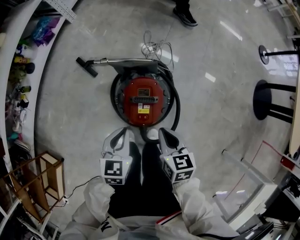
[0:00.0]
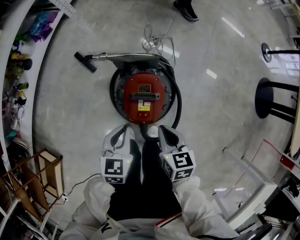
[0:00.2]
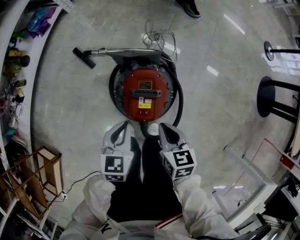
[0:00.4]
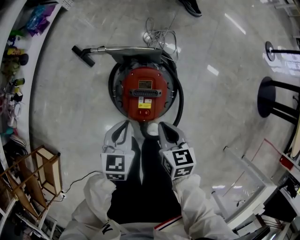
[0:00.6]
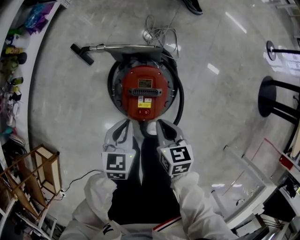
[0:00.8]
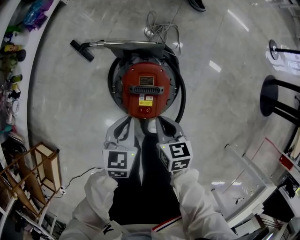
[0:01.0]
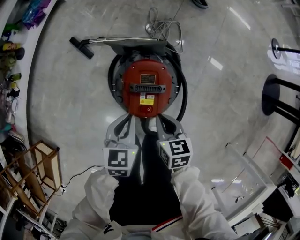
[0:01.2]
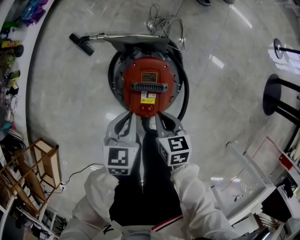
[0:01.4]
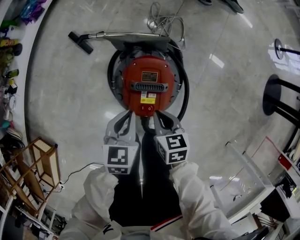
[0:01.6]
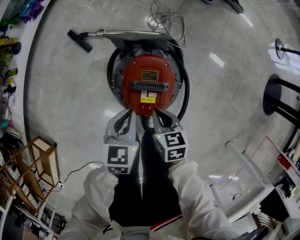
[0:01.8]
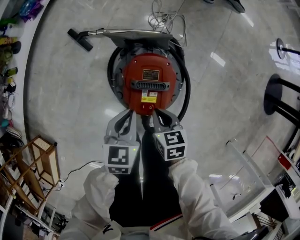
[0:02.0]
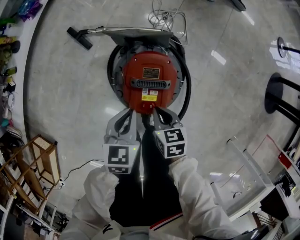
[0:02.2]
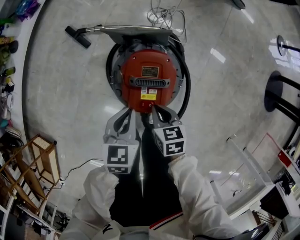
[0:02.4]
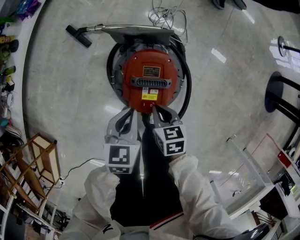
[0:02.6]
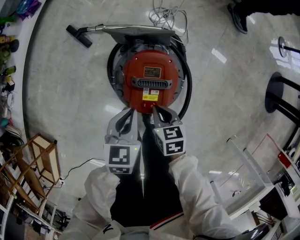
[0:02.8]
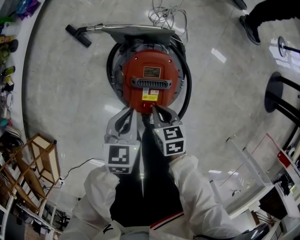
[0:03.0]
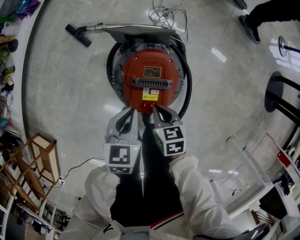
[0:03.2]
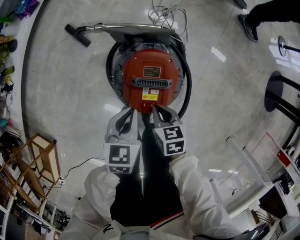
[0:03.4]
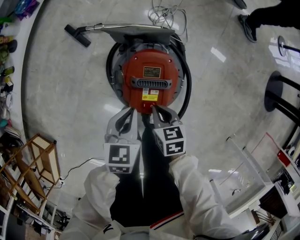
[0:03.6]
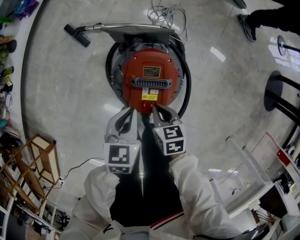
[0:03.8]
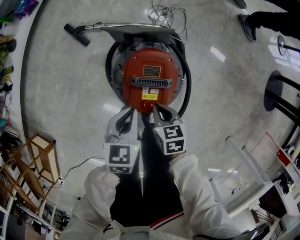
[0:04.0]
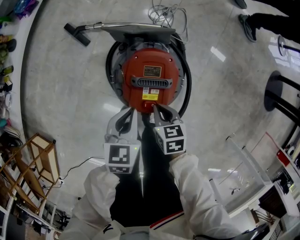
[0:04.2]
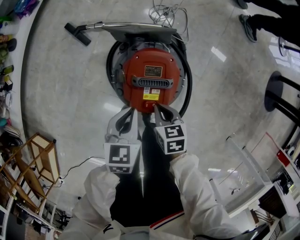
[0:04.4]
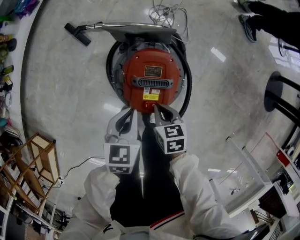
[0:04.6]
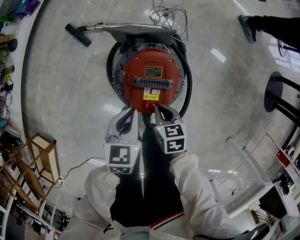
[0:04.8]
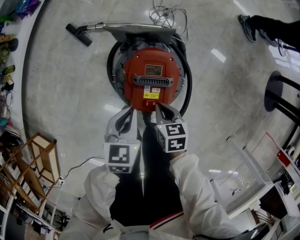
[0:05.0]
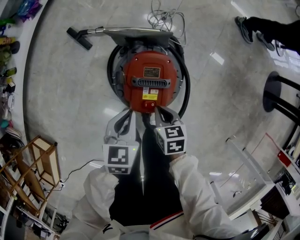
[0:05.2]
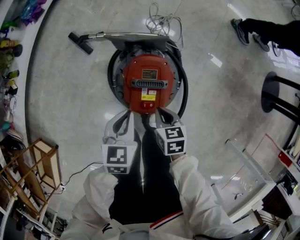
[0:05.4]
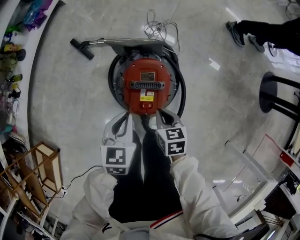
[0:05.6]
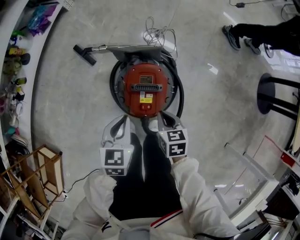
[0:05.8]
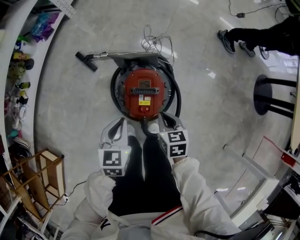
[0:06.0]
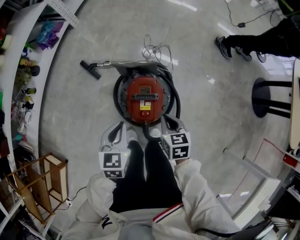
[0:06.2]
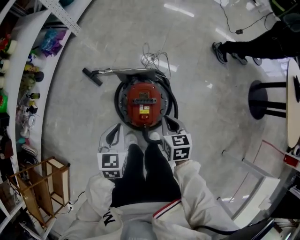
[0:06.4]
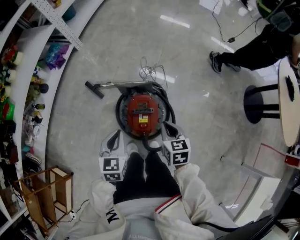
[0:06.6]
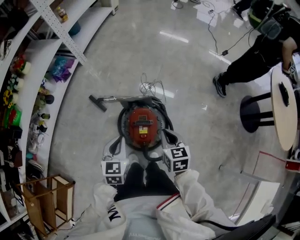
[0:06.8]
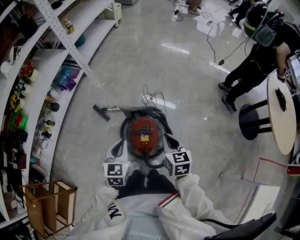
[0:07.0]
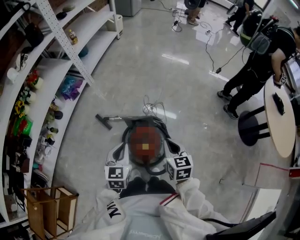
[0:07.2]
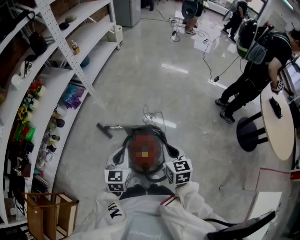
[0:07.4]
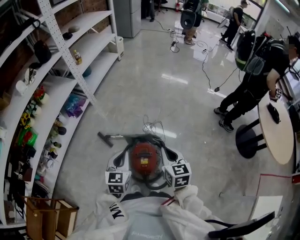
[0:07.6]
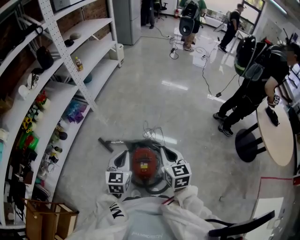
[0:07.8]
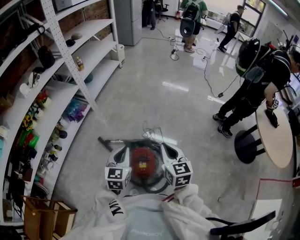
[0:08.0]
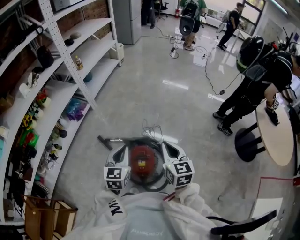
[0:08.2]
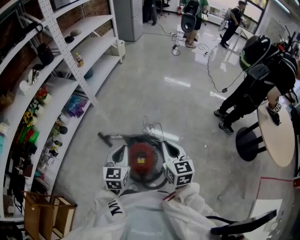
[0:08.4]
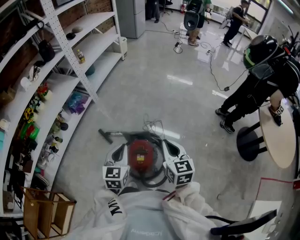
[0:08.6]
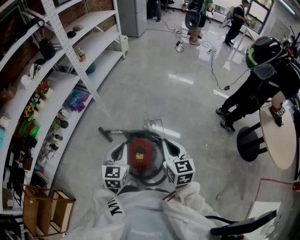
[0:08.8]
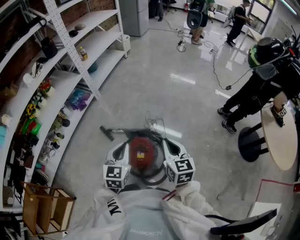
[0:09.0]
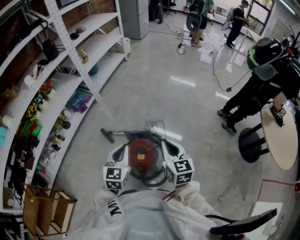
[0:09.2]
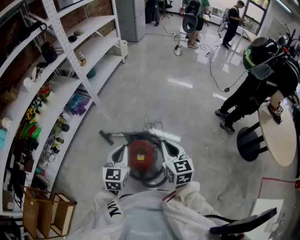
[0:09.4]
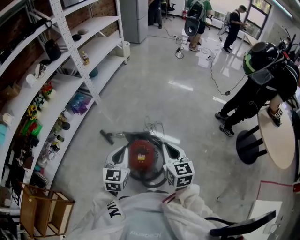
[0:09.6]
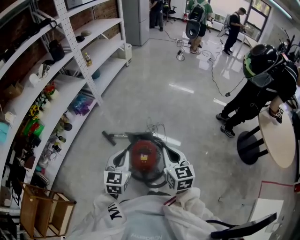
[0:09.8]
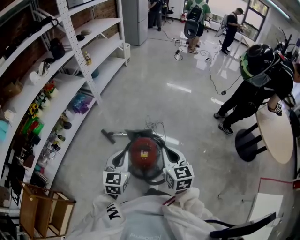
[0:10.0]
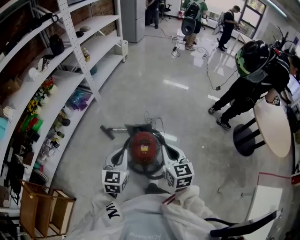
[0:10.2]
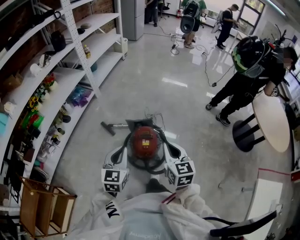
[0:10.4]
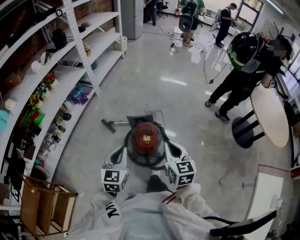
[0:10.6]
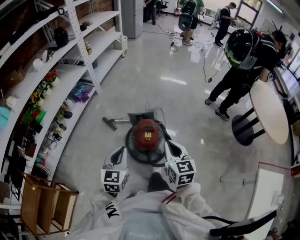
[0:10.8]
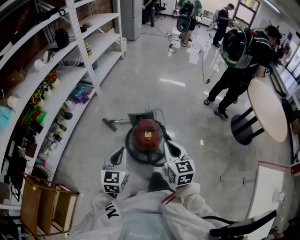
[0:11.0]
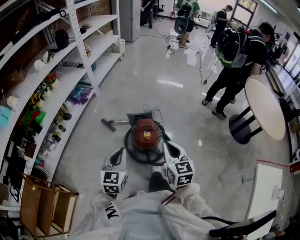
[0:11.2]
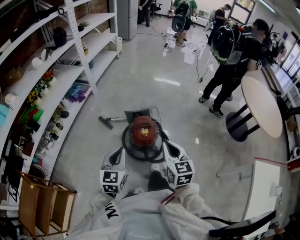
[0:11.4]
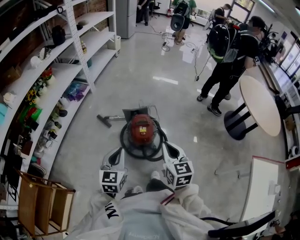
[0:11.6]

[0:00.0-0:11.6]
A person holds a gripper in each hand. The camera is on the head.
0:00.0 to 0:01.4: The left gripper moves downward, roughly 10 cm; the right gripper travels downward by some 10 cm.
0:01.4 to 0:02.8: The right gripper moves downward, about 5 cm.
0:02.8 to 0:04.4: The two grippers keep their place.
0:04.4 to 0:05.8: Both grippers move upward, about 5 cm.
0:05.8 to 0:07.2: The two grippers go about 25 cm upward. The right gripper changes its angle by some 20 degrees.
0:07.2 to 0:08.8: The left gripper goes some 10 cm upward and to the right, while the right gripper is displaced upward by roughly 10 cm.
0:08.8 to 0:10.2: The two grippers go roughly 10 cm backward and to the left.
0:10.2 to 0:11.6: The grippers both shift backward by about 15 cm.

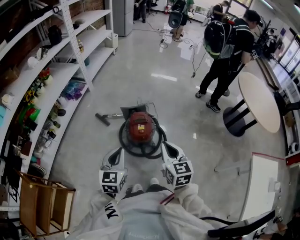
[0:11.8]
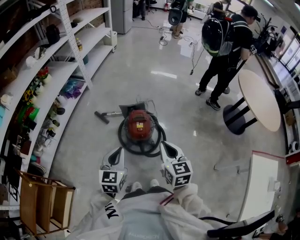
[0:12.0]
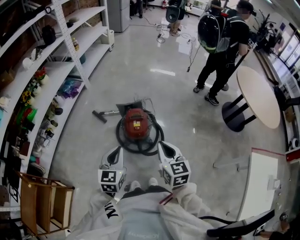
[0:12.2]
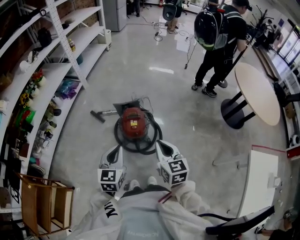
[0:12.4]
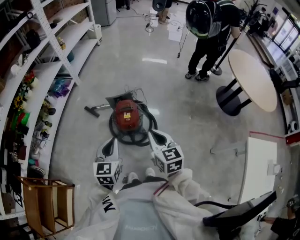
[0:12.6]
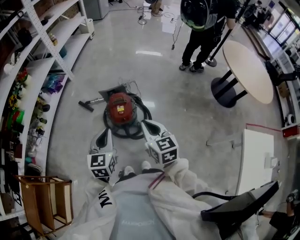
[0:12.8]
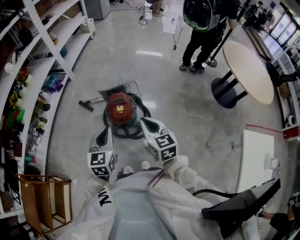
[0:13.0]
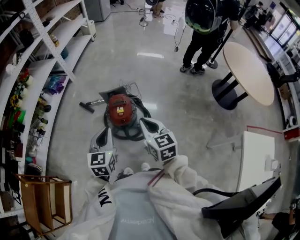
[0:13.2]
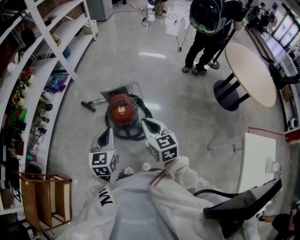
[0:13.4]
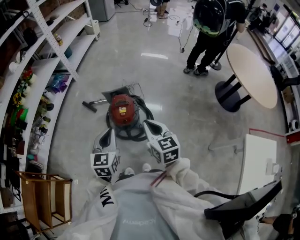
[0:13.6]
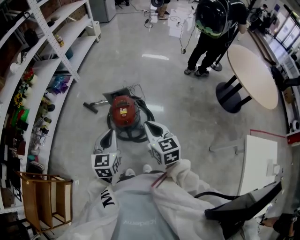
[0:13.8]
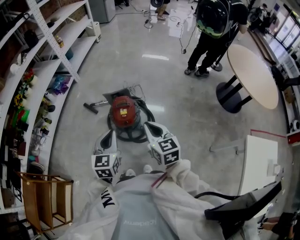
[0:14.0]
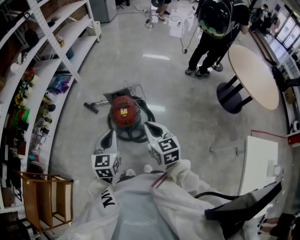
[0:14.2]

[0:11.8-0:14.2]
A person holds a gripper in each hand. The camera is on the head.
0:11.8 to 0:13.0: The left gripper moves to the right, roughly 10 cm.
0:13.0 to 0:14.2: There are only small adjustments of the grippers.

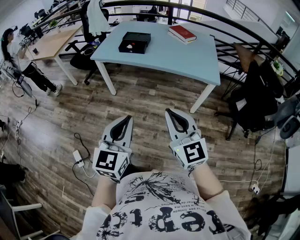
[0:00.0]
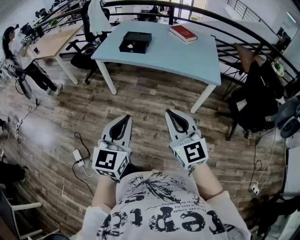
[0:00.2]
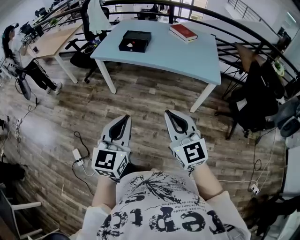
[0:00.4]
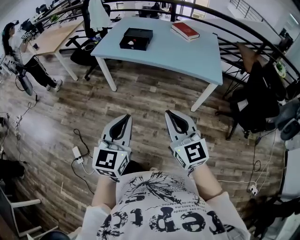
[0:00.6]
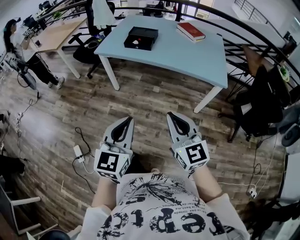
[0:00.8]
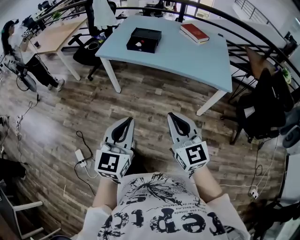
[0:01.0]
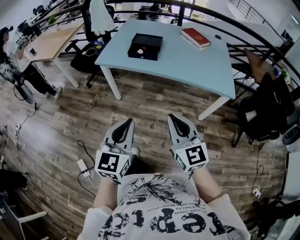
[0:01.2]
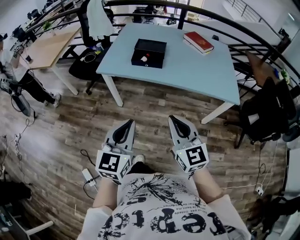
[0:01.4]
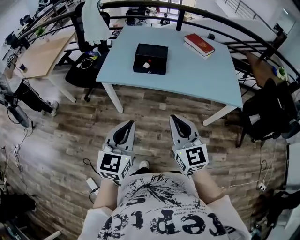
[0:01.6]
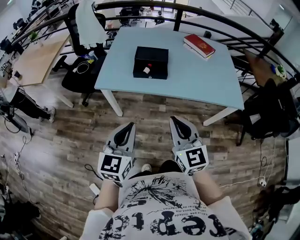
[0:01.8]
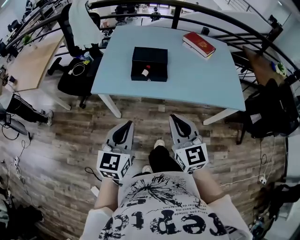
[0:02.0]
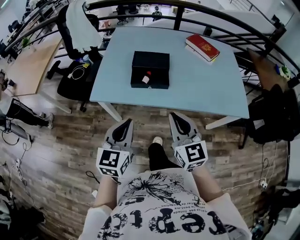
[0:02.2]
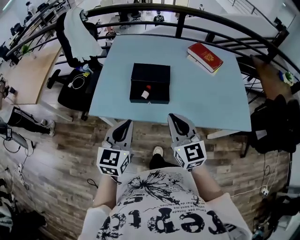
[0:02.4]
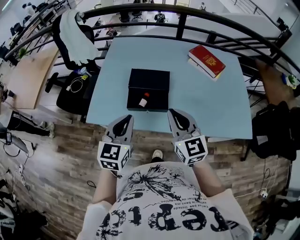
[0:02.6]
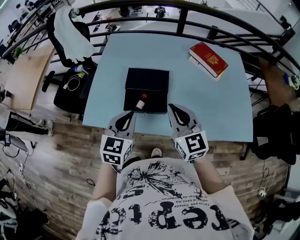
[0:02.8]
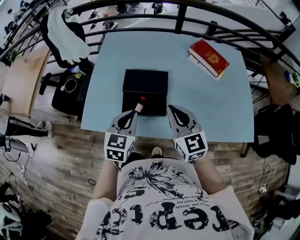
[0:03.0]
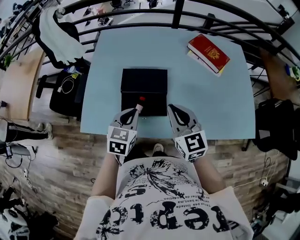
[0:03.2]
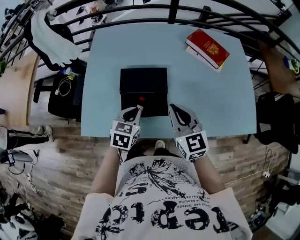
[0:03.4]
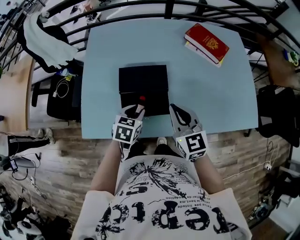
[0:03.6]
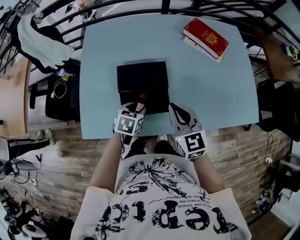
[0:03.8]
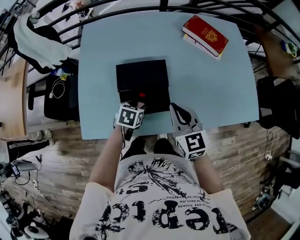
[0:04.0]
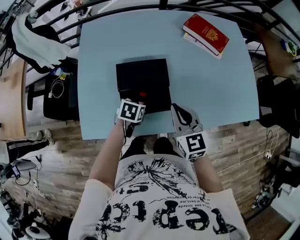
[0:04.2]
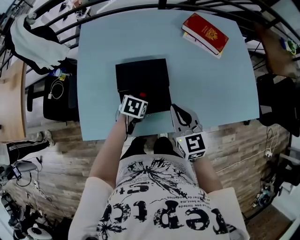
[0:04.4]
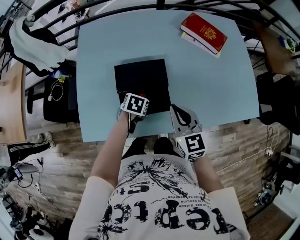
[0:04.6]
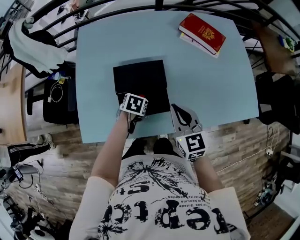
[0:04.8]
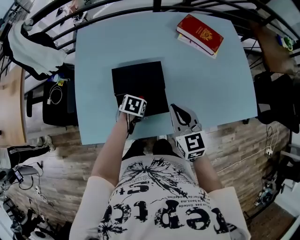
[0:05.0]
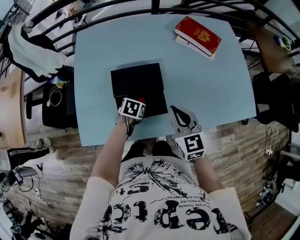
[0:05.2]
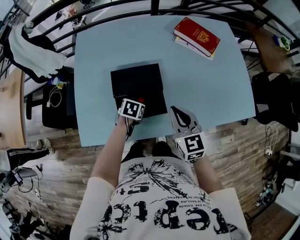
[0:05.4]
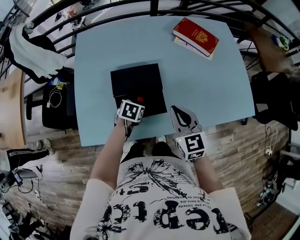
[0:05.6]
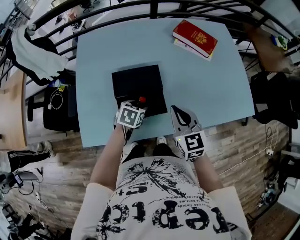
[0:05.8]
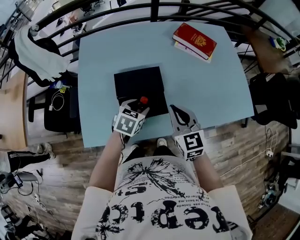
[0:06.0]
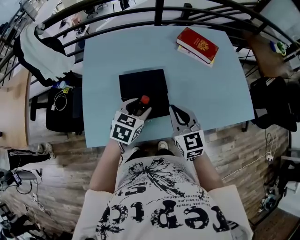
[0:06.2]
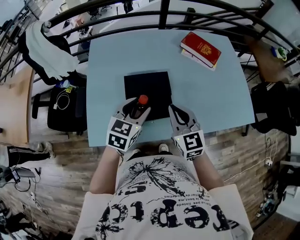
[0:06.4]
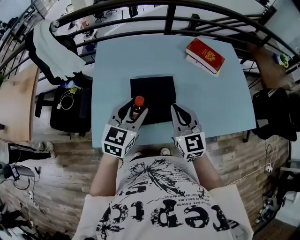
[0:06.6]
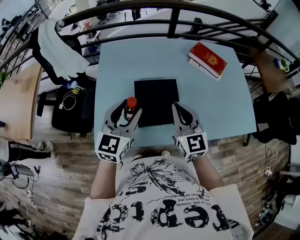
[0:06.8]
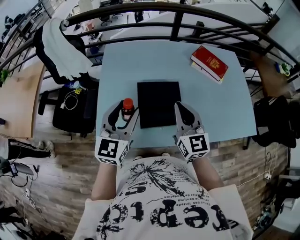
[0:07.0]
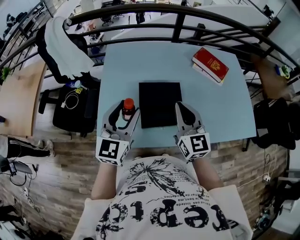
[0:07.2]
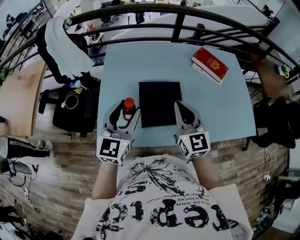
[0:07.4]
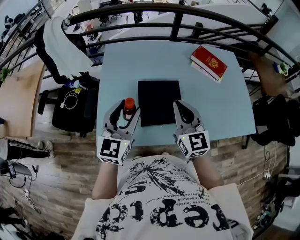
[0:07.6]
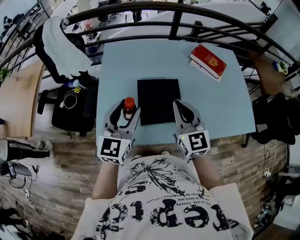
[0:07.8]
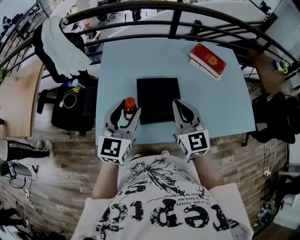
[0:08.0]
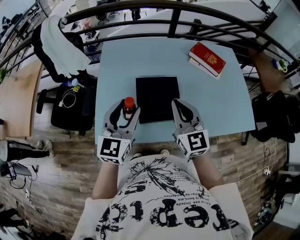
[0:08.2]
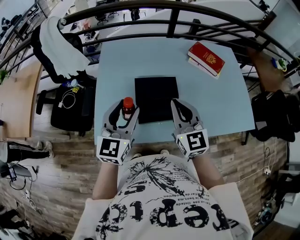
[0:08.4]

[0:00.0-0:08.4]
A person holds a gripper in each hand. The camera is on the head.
0:00.0 to 0:01.4: Both grippers travel together forward and to the left, some 30 cm.
0:01.4 to 0:02.8: Both grippers are carried forward, some 50 cm.
0:02.8 to 0:04.2: The right gripper heads downward, covering some 10 cm, and rotates roughly 20 degrees. Meanwhile the left gripper shifts some 25 cm downward, points its fingers some 40 degrees further downward, and opens up.
0:04.2 to 0:05.6: There are only small adjustments of the grippers.
0:05.6 to 0:07.0: The right gripper travels upward and to the left by some 15 cm; the left gripper travels upward and to the left by approximately 35 cm, and angles its fingers upward, by some 60 degrees.
0:07.0 to 0:08.4: There are only small adjustments of the grippers.

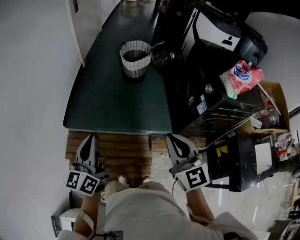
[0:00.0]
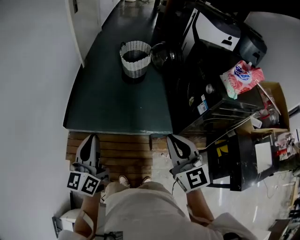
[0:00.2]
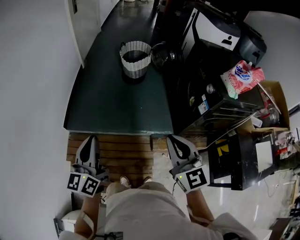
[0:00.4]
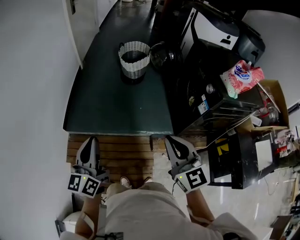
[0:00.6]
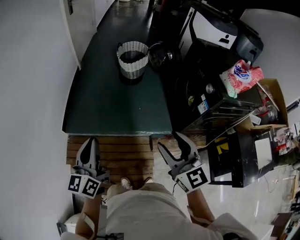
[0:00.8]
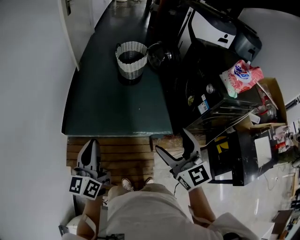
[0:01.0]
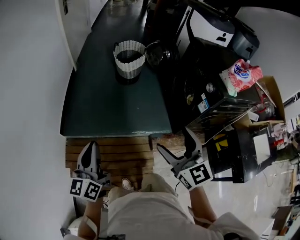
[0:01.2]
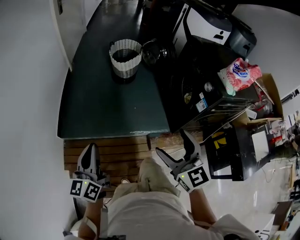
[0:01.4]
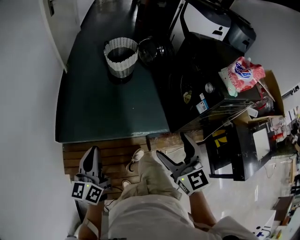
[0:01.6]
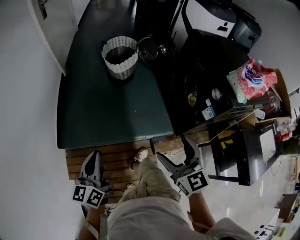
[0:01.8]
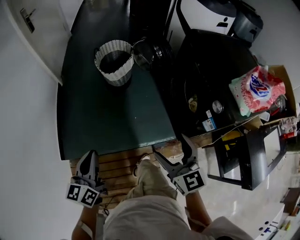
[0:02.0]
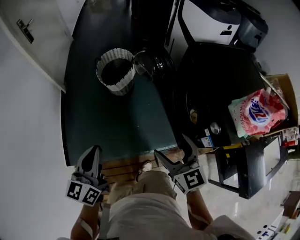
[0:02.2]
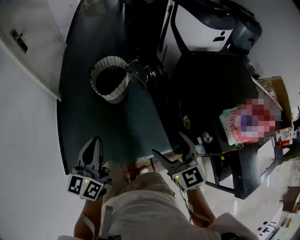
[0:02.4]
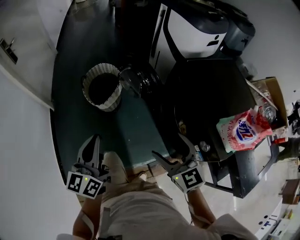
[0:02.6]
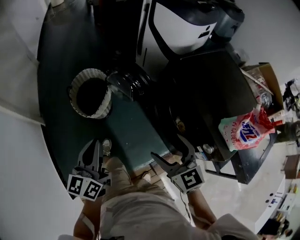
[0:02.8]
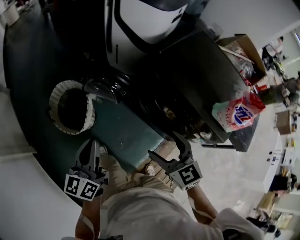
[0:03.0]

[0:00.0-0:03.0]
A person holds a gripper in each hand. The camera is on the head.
0:00.0 to 0:01.6: The right gripper travels forward by roughly 5 cm, and opens its fingers; the left gripper shifts some 10 cm forward and downward.
0:01.6 to 0:03.0: Both grippers are carried roughly 60 cm. The left gripper rotates some 40 degrees, while the right gripper rotates approximately 30 degrees.
